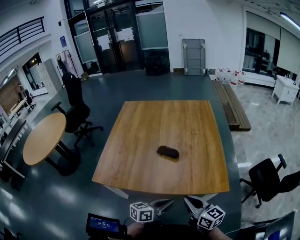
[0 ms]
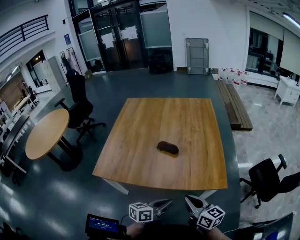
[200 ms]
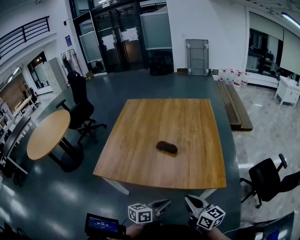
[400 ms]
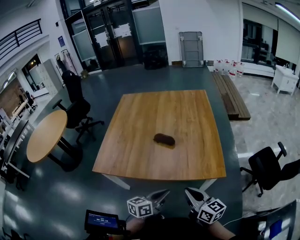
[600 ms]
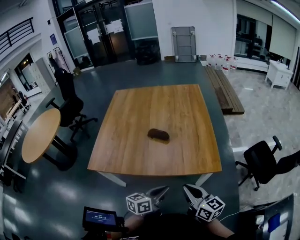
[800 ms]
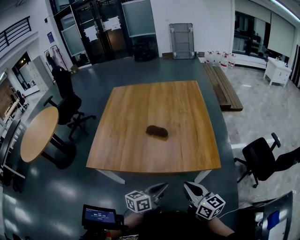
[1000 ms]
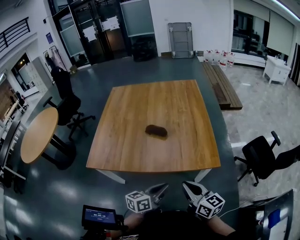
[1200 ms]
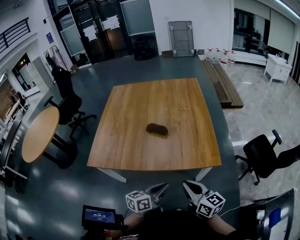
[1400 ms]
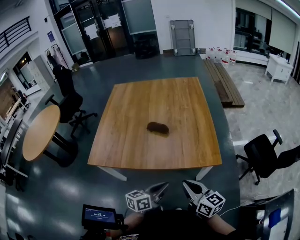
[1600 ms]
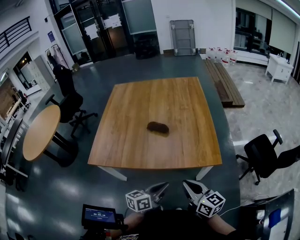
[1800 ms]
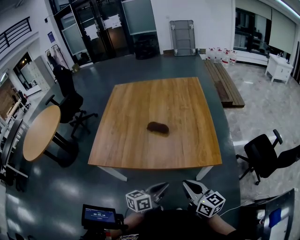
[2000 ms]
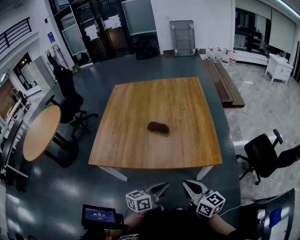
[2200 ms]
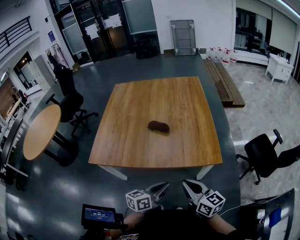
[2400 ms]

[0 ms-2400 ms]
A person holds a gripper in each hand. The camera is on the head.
0 ms to 1200 ms: The right gripper moves roughly 5 cm.
1200 ms to 2400 ms: The grippers stay close to where they were, moving slightly.

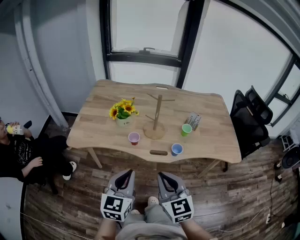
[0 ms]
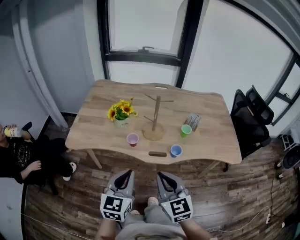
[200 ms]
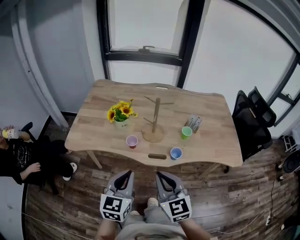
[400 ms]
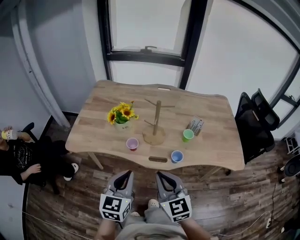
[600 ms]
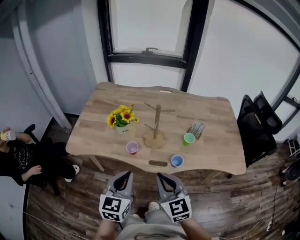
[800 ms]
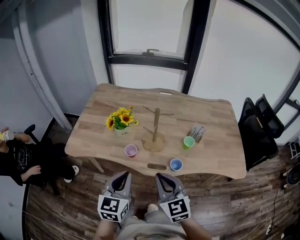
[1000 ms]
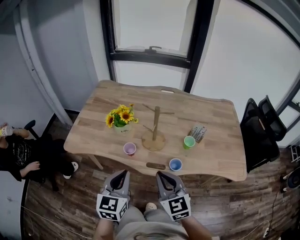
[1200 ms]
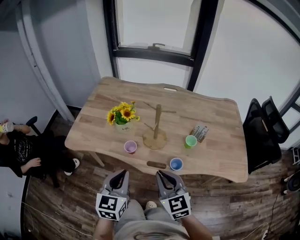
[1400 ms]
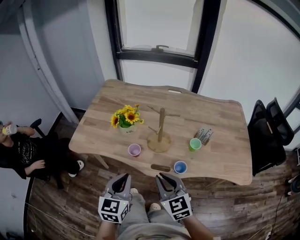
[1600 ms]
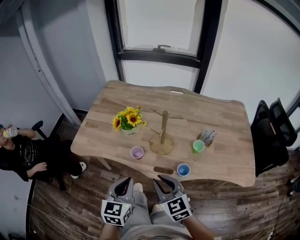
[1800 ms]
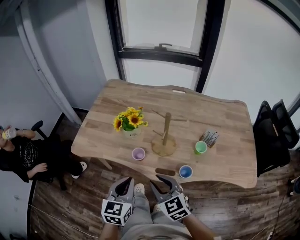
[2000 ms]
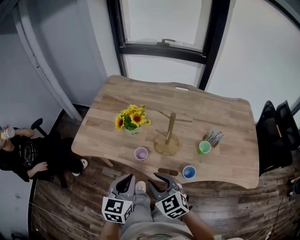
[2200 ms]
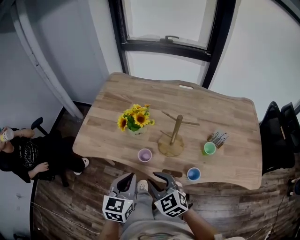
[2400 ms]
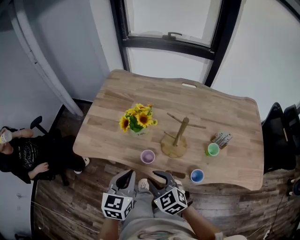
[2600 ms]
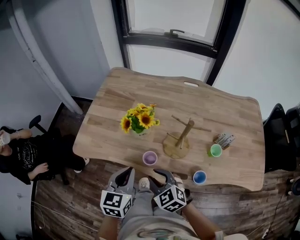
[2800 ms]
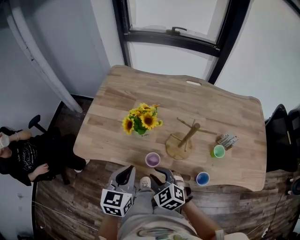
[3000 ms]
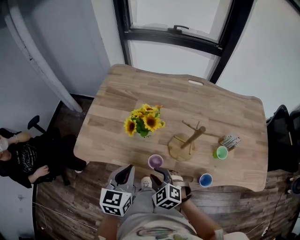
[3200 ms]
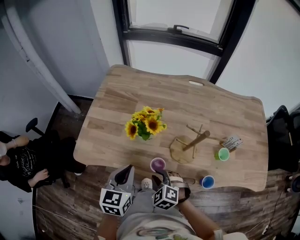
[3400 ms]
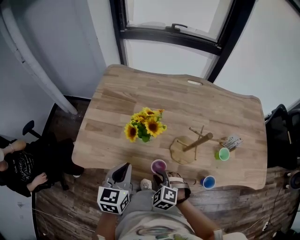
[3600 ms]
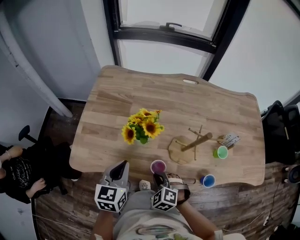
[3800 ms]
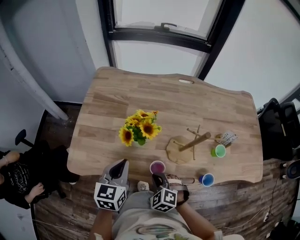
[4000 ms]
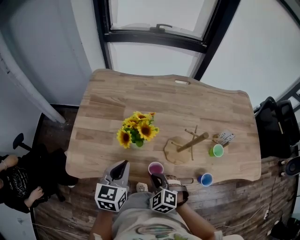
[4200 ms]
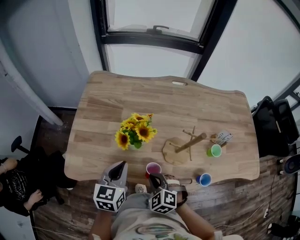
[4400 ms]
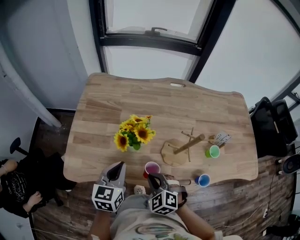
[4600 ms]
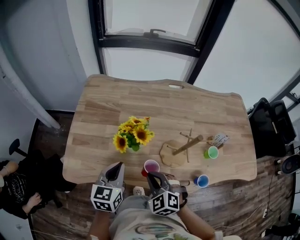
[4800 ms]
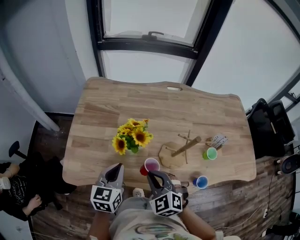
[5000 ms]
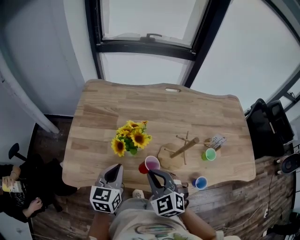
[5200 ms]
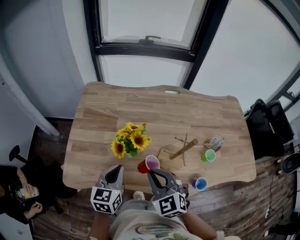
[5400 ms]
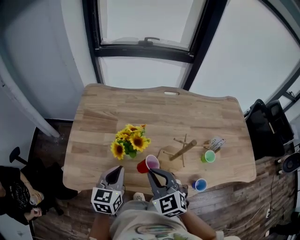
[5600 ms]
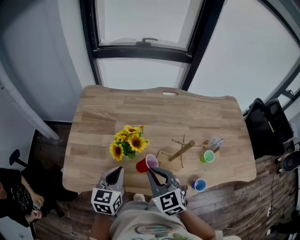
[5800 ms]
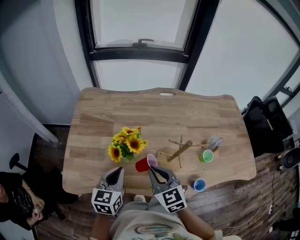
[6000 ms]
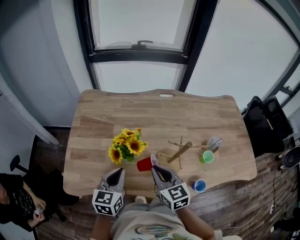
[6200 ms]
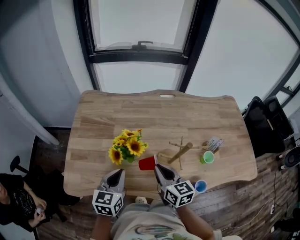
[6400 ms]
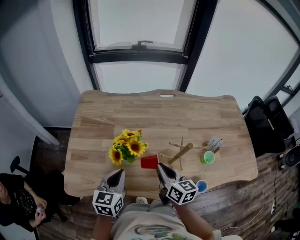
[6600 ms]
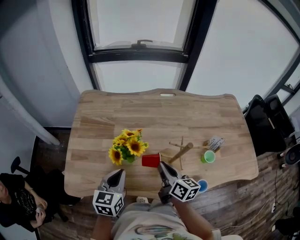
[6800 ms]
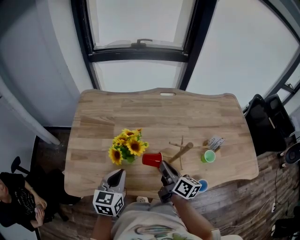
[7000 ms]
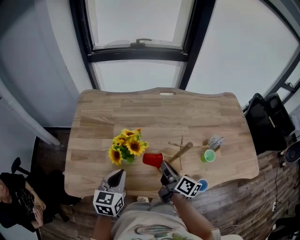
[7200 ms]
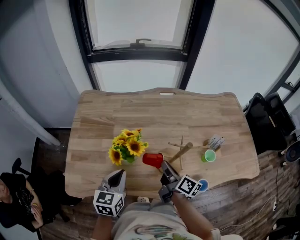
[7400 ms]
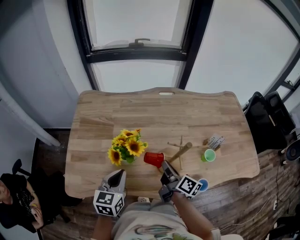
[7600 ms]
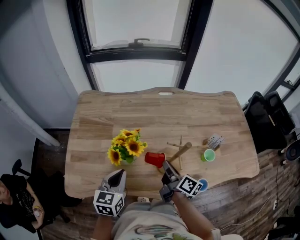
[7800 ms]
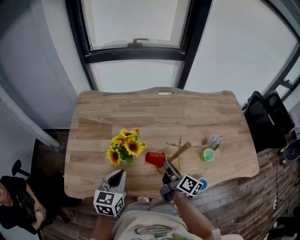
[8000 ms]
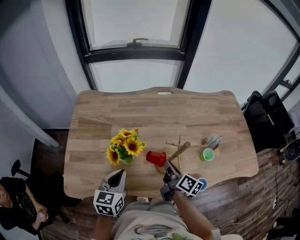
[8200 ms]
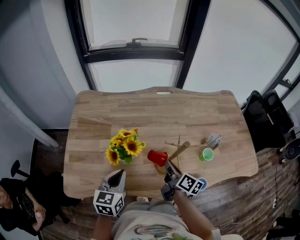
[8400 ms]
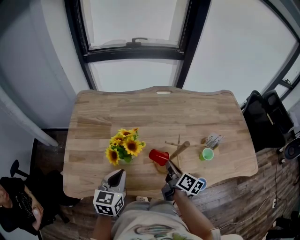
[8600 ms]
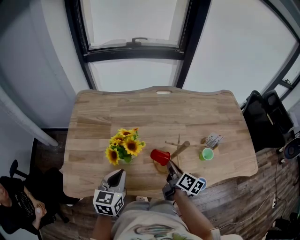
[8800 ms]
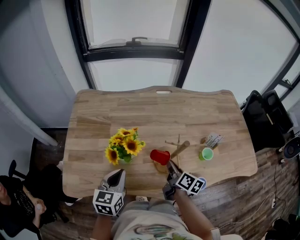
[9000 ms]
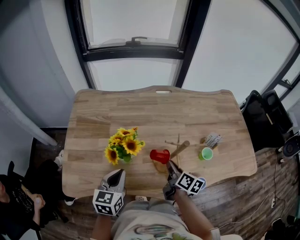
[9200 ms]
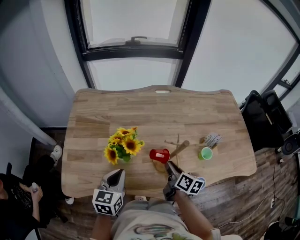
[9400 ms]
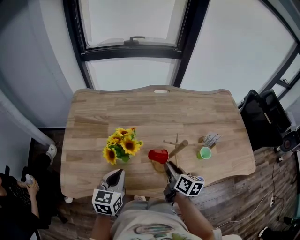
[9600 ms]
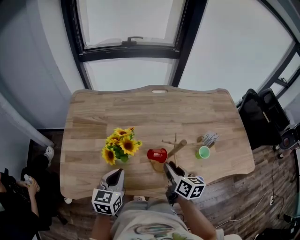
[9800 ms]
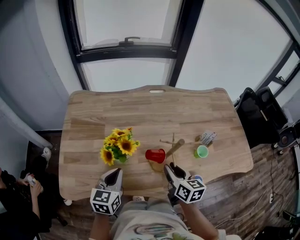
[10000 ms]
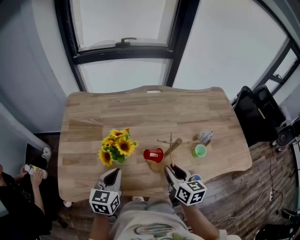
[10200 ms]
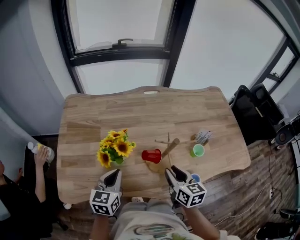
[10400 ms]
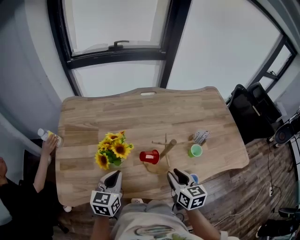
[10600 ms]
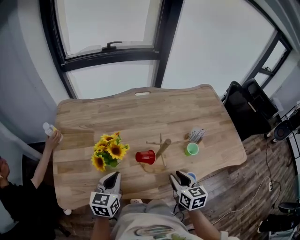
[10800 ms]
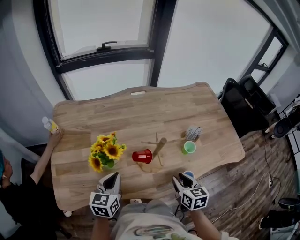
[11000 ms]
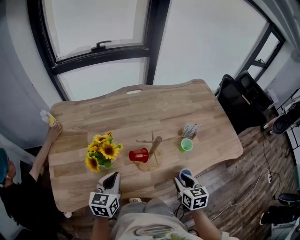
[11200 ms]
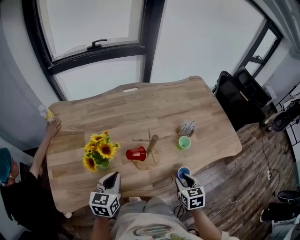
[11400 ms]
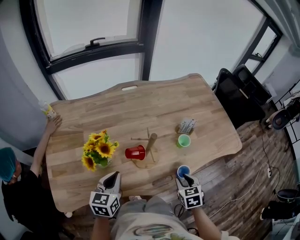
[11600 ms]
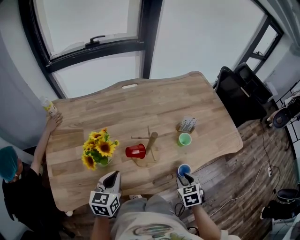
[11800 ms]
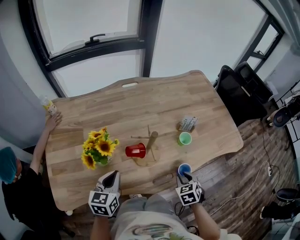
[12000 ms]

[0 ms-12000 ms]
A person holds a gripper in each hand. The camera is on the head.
0 ms to 1600 ms: The right gripper moves forward and downward, roughly 15 cm, while the left gripper travels forward by some 10 cm.
1600 ms to 3000 ms: The right gripper is displaced forward, downward and to the left by roughly 20 cm, and swivels roughly 30 degrees. Meanwhile the left gripper moves forward, roughly 15 cm.
3000 ms to 4400 ms: The right gripper ends up some 5 cm from where it was, and closes. The left gripper heads forward, covering approximately 10 cm.
4400 ms to 6000 ms: The right gripper goes roughly 15 cm upward and forward, and swivels roughly 40 degrees.
6000 ms to 7600 ms: The right gripper travels to the right and downward by roughly 10 cm, and twists roughly 70 degrees clockwise, seen from behind.
7600 ms to 9000 ms: The right gripper moves approximately 5 cm.
9000 ms to 10400 ms: The right gripper heads upward and backward, covering some 10 cm, and swivels some 30 degrees.
10400 ms to 12000 ms: The right gripper heads to the right, downward and backward, covering about 20 cm, and tips its fingers downward by approximately 30 degrees, while the left gripper moves to the right, approximately 5 cm.

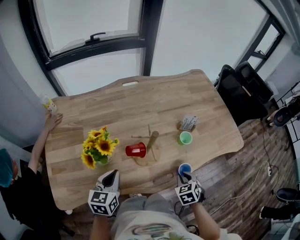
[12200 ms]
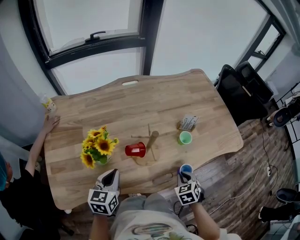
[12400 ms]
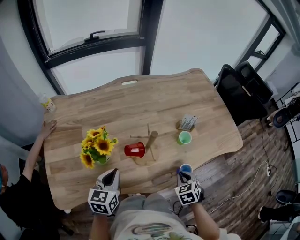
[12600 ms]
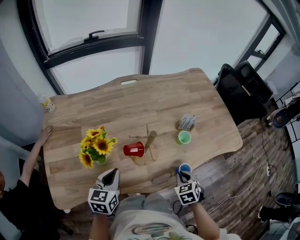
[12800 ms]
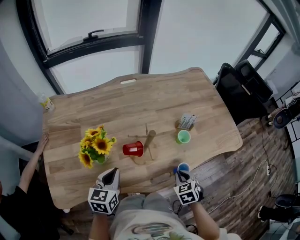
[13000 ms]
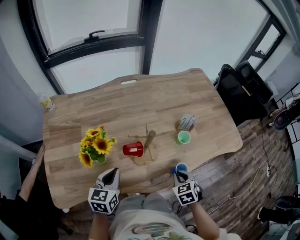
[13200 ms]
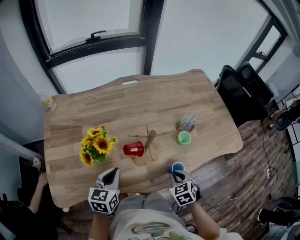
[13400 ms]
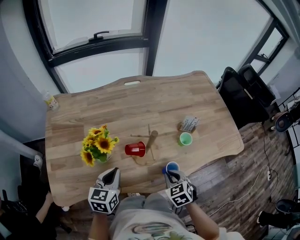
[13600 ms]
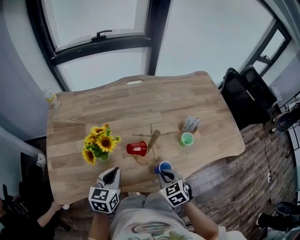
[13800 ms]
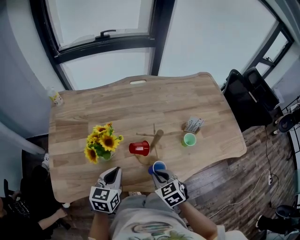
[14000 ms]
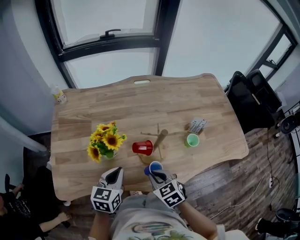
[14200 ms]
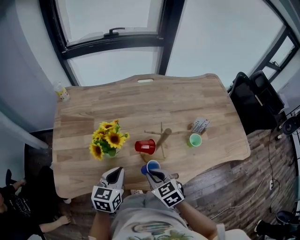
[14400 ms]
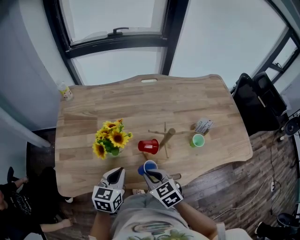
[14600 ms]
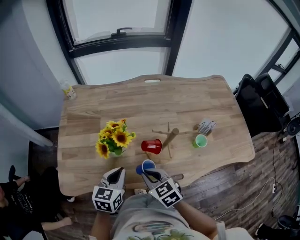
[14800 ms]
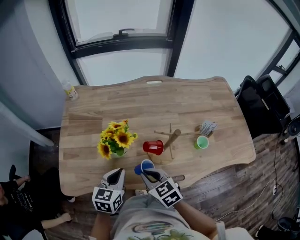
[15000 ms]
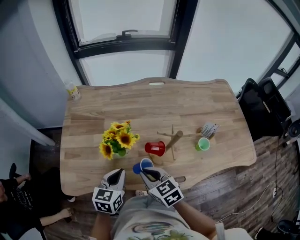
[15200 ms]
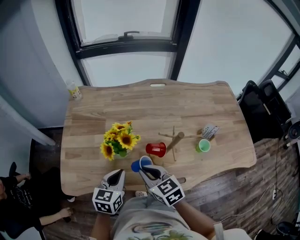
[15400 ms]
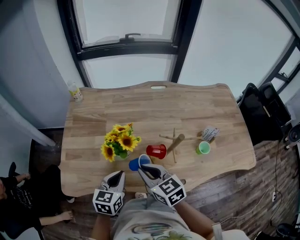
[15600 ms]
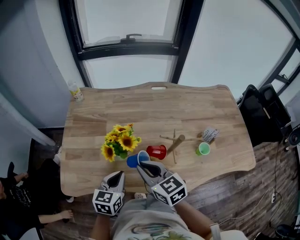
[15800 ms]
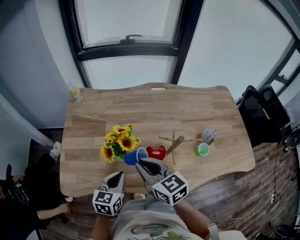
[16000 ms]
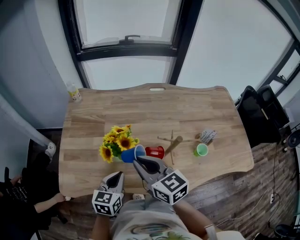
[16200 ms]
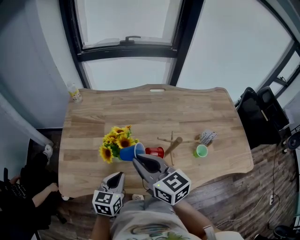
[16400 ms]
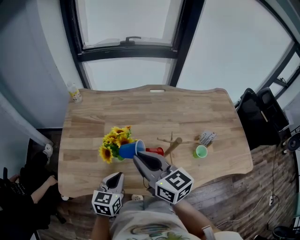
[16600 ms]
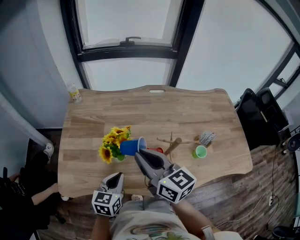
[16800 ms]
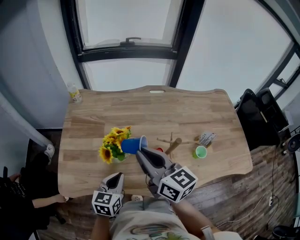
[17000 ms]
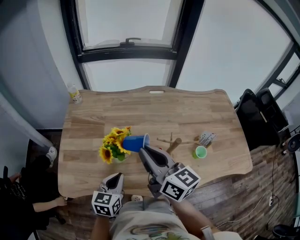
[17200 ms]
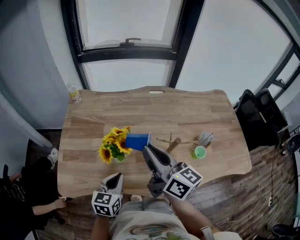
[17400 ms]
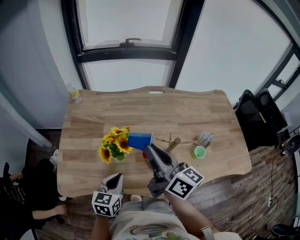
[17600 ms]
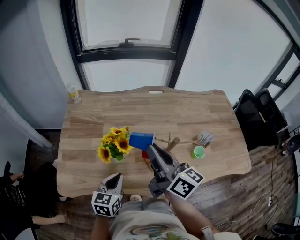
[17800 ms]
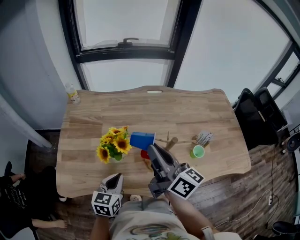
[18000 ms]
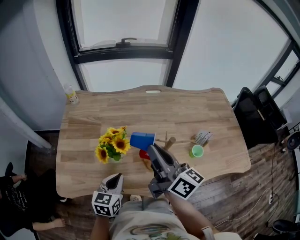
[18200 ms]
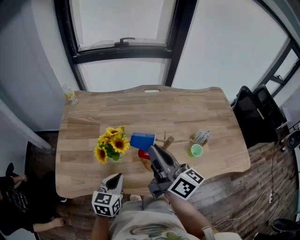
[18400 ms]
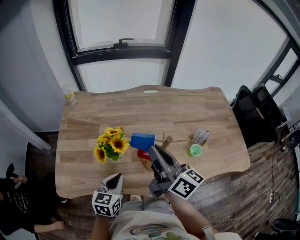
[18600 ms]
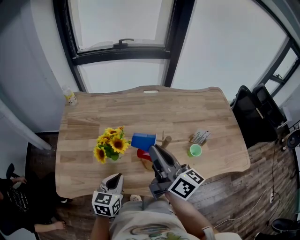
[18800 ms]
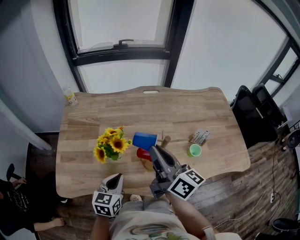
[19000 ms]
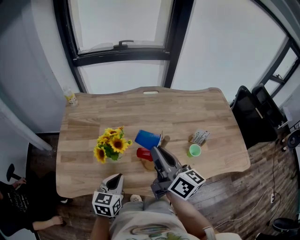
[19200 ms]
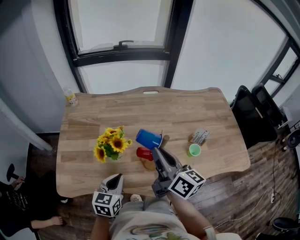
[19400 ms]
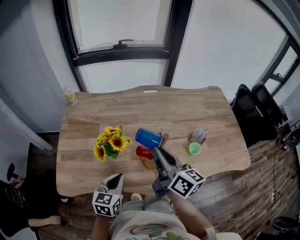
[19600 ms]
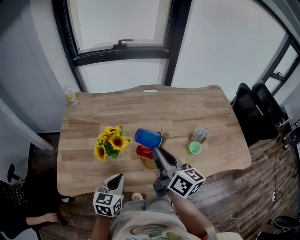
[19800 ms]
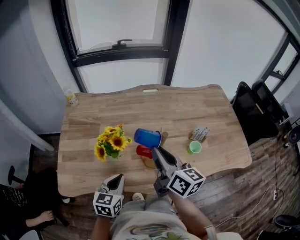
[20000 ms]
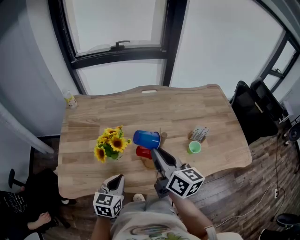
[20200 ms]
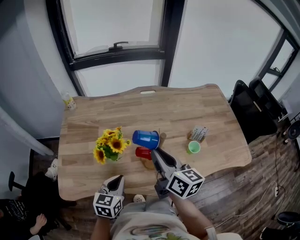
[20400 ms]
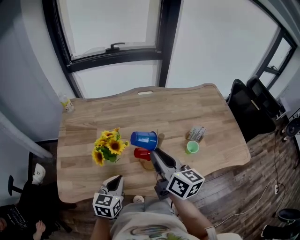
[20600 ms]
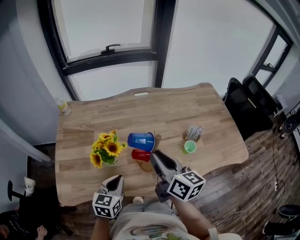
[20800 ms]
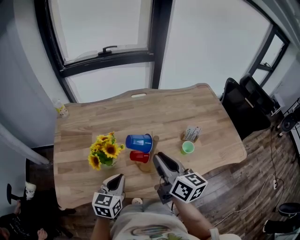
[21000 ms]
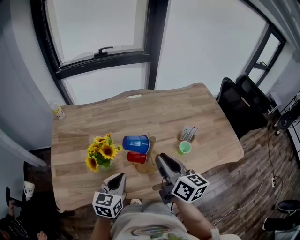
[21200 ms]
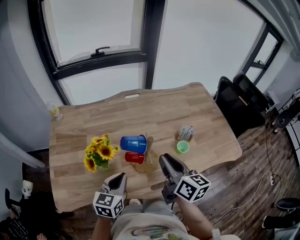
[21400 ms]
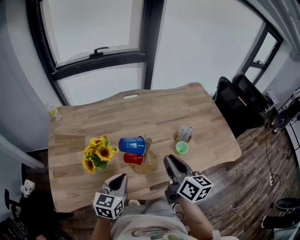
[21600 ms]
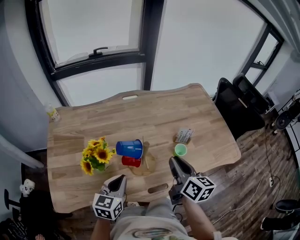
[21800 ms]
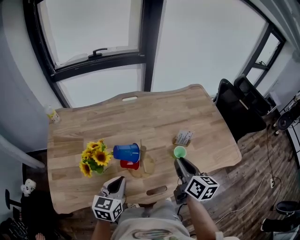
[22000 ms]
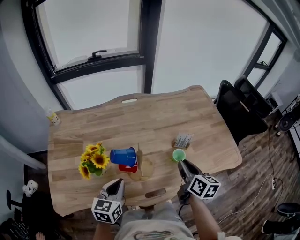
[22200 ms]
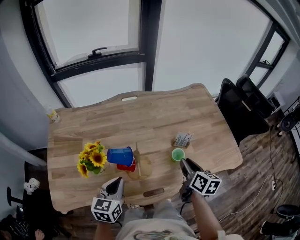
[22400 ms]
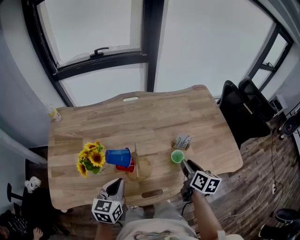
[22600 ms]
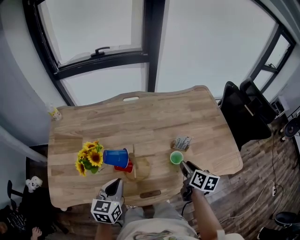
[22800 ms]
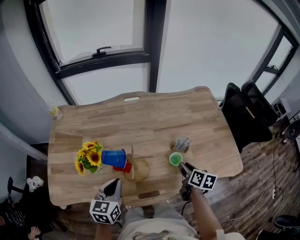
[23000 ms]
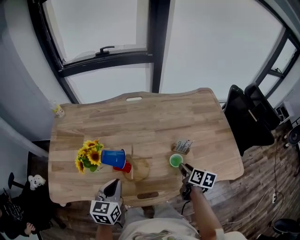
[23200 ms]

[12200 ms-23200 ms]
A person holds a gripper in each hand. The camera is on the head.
12200 ms to 13800 ms: The right gripper heads to the left, covering roughly 10 cm, and swivels approximately 20 degrees.
13800 ms to 15400 ms: The right gripper is displaced to the left and upward by approximately 20 cm, and changes its angle by some 30 degrees, while the left gripper moves to the left, approximately 5 cm.
15400 ms to 17000 ms: The right gripper travels upward by approximately 15 cm, and rotates about 30 degrees.
17000 ms to 18400 ms: The right gripper goes roughly 5 cm to the right, and changes its angle by about 20 degrees.
18400 ms to 20000 ms: The grippers stay close to where they were, moving slightly.
20000 ms to 21600 ms: The right gripper heads to the right, covering some 10 cm, while the left gripper moves to the right, approximately 5 cm.
21600 ms to 23200 ms: The right gripper is displaced to the right, downward and forward by approximately 25 cm, and swivels about 30 degrees.
